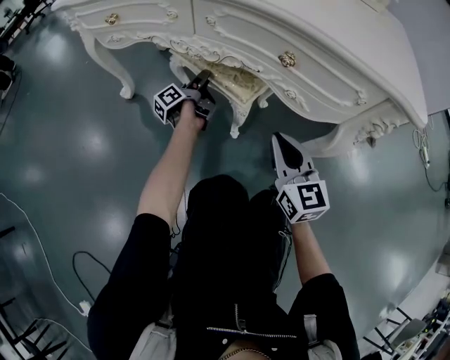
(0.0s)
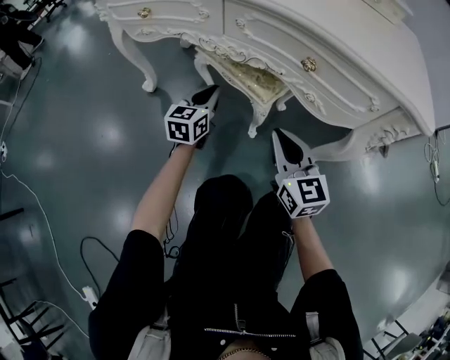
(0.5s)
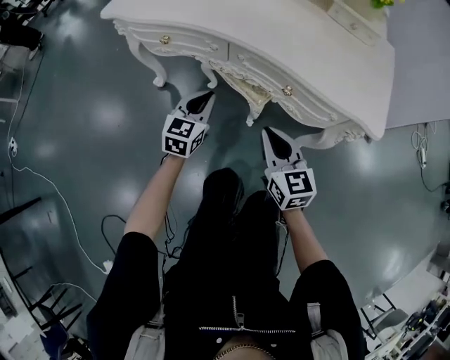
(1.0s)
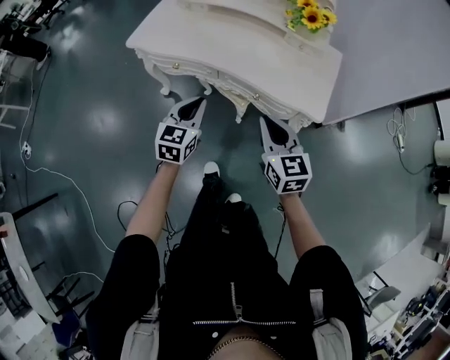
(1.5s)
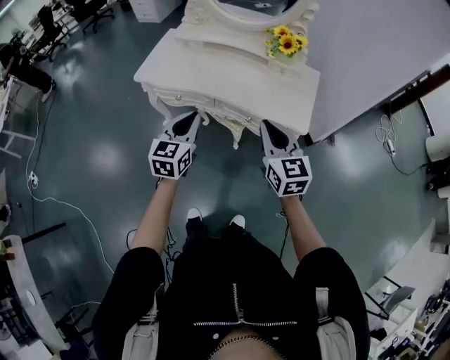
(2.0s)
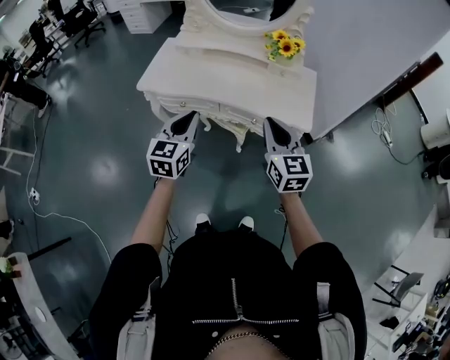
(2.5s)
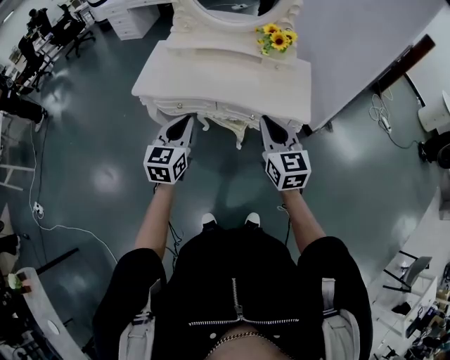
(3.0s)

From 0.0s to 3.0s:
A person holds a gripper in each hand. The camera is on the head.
From 0.0s to 1.5s: The left gripper goes about 60 cm upward and backward, rotates around the line of its fingers by some 80 degrees, clockwise from behind, and closes its fingers. The right gripper goes roughly 50 cm upward.
From 1.5s to 3.0s: The right gripper goes roughly 15 cm upward, while the left gripper goes some 15 cm upward and to the left.

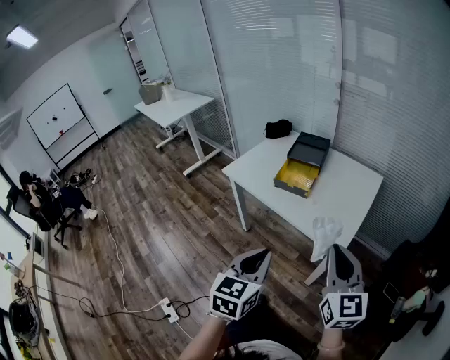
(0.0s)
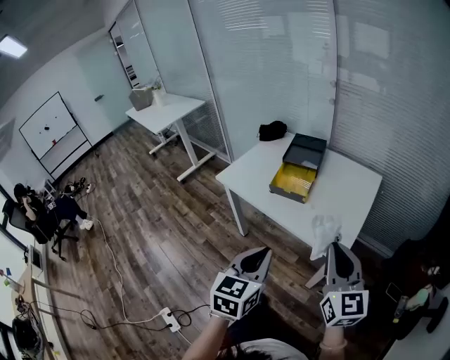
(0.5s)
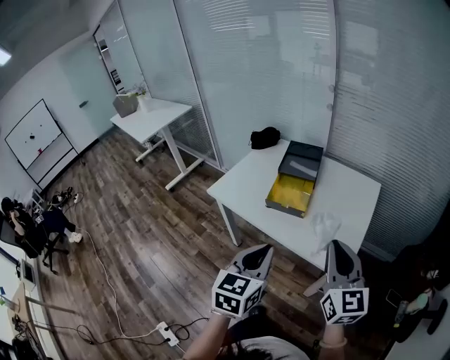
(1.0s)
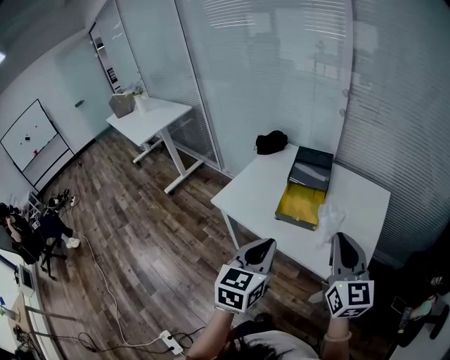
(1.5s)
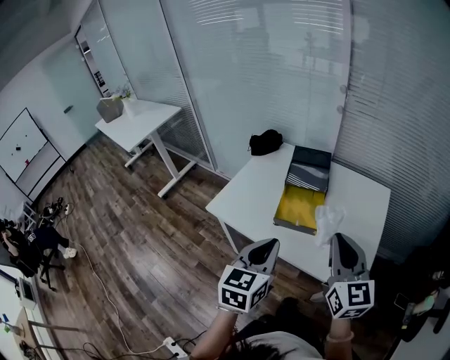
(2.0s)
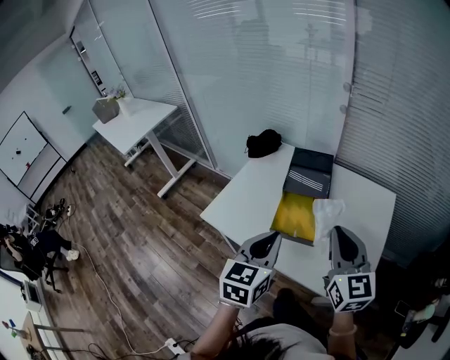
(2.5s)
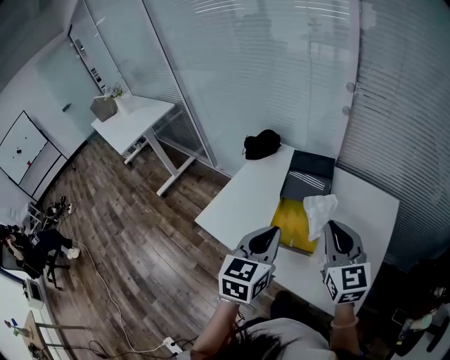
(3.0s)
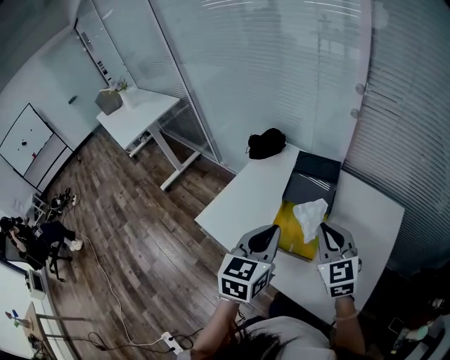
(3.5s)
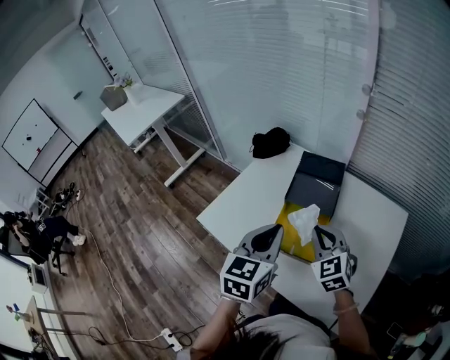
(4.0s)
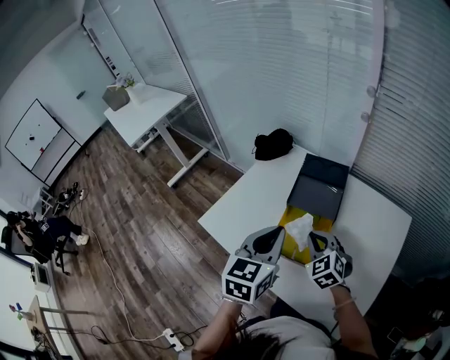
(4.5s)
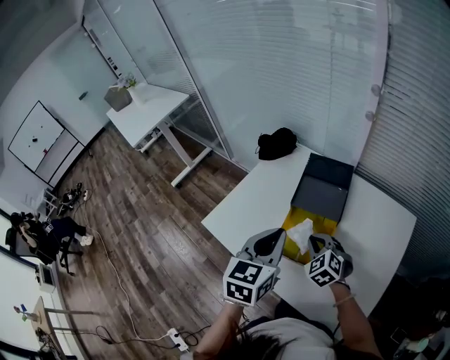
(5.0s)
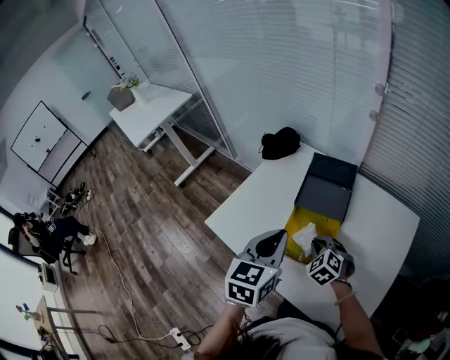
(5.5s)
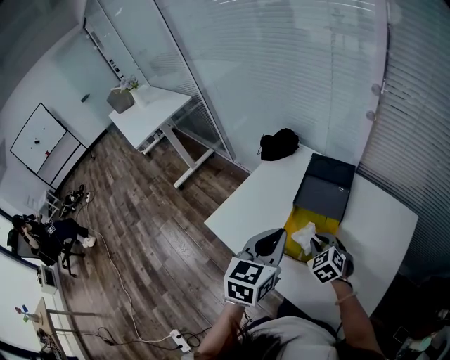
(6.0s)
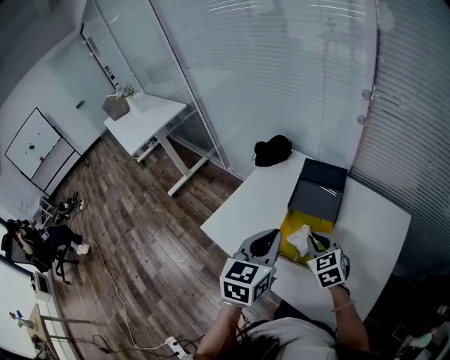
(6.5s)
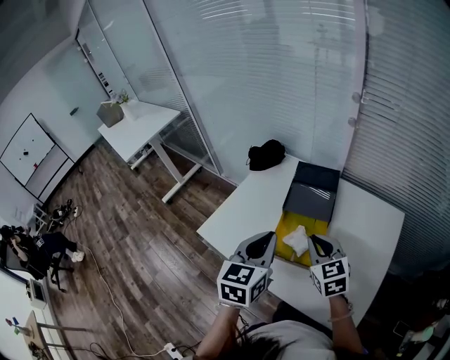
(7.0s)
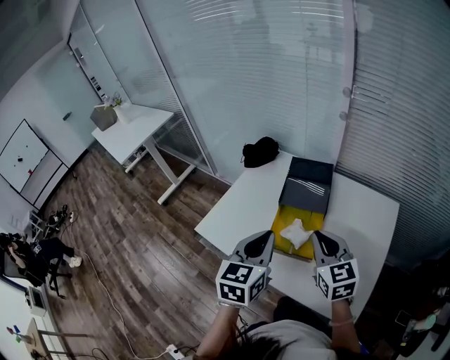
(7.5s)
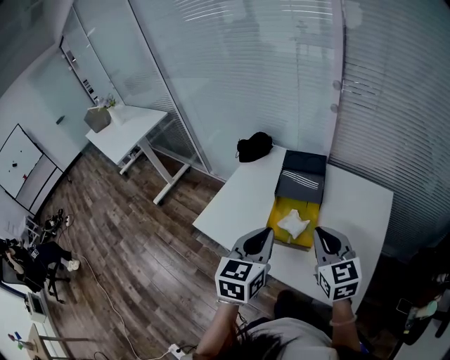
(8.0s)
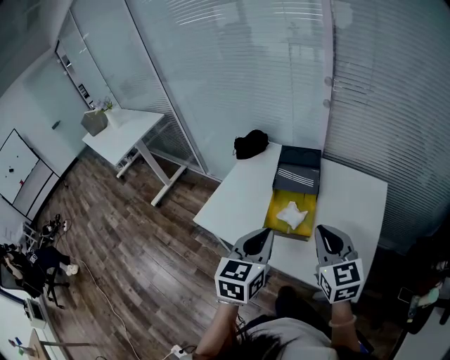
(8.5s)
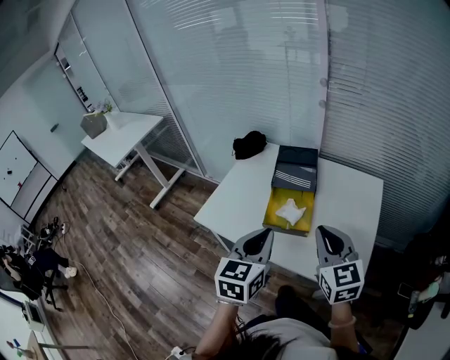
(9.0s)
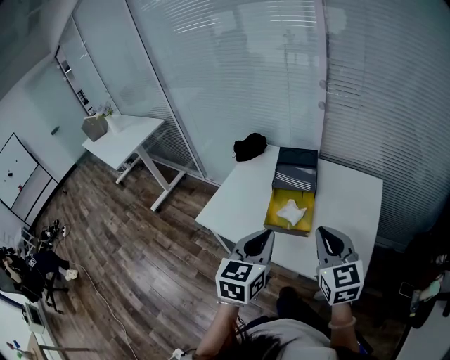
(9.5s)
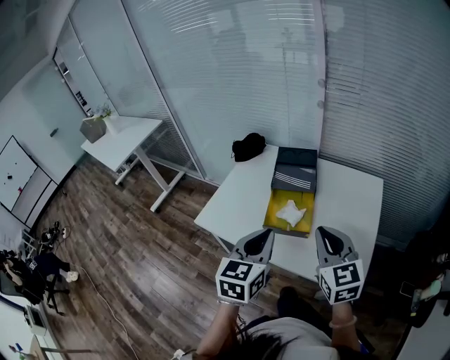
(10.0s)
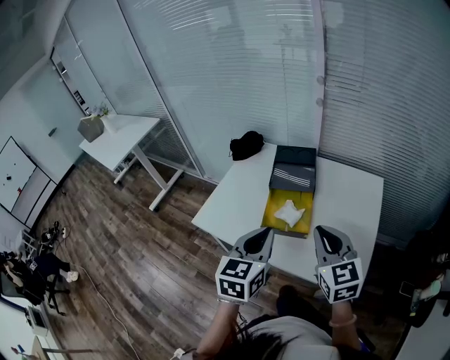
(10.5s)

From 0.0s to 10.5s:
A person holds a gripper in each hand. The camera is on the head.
From 0.0s to 2.0s: The left gripper goes approximately 25 cm forward; the right gripper is displaced forward and to the left by approximately 25 cm.
From 2.0s to 4.0s: The left gripper moves forward, some 20 cm. Meanwhile the right gripper moves forward and downward, roughly 25 cm, and changes its angle by approximately 40 degrees.
From 4.0s to 6.5s: The right gripper shifts roughly 5 cm downward.
From 6.5s to 8.5s: The left gripper shifts approximately 10 cm backward. The right gripper heads upward and backward, covering about 20 cm, and rotates roughly 30 degrees.
From 8.5s to 10.5s: The grippers make only small movements.

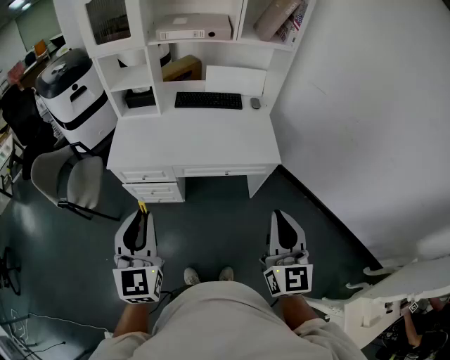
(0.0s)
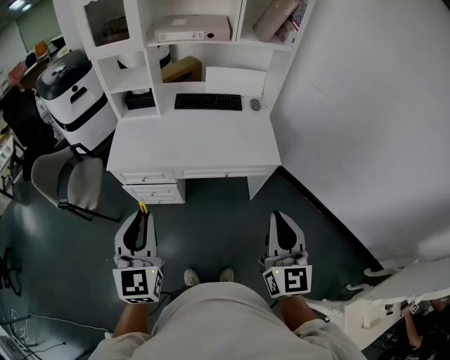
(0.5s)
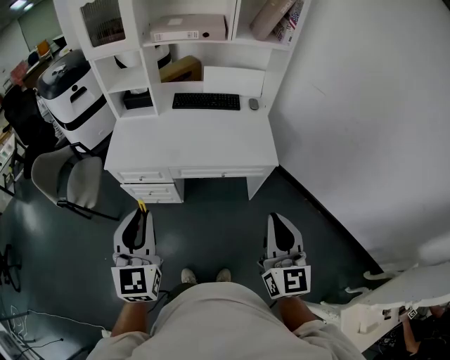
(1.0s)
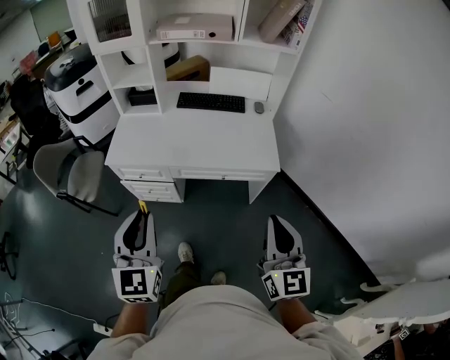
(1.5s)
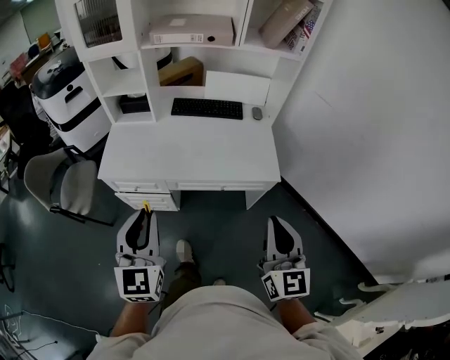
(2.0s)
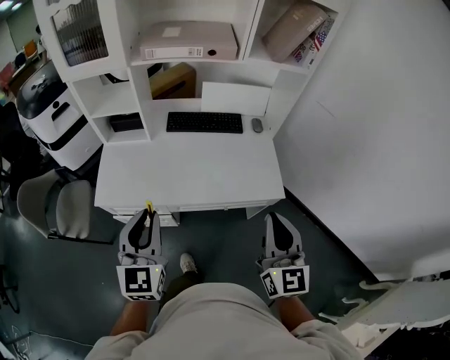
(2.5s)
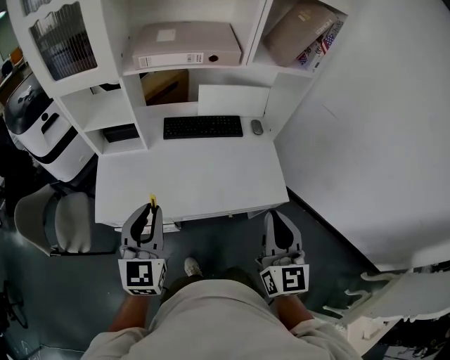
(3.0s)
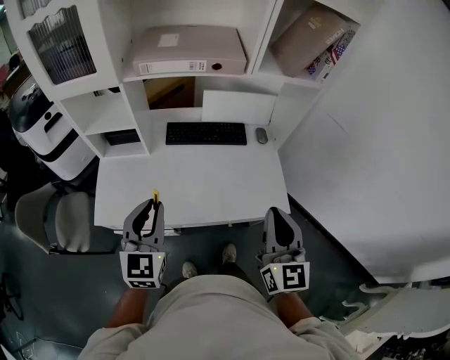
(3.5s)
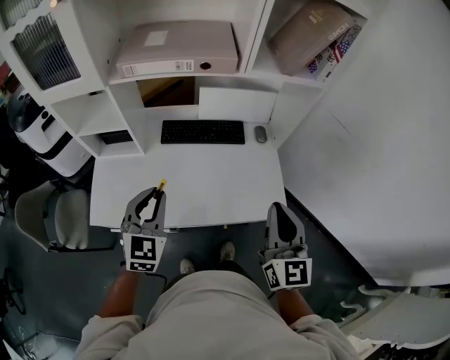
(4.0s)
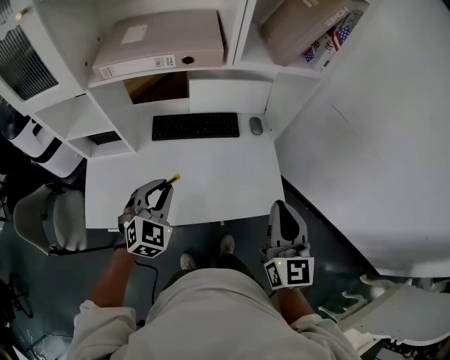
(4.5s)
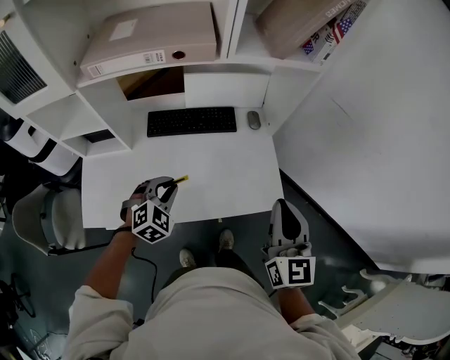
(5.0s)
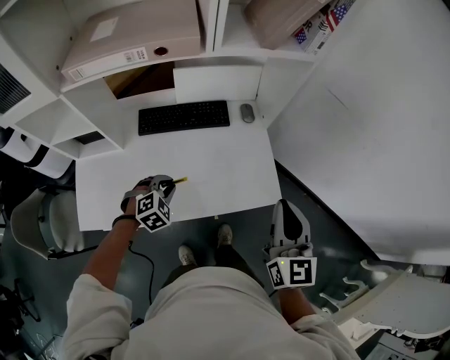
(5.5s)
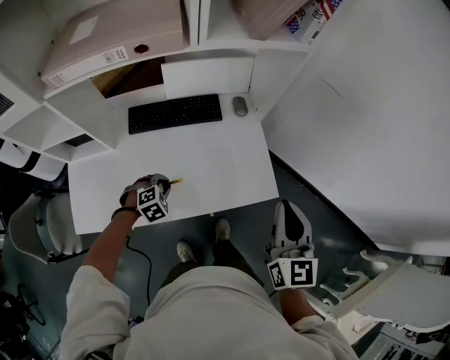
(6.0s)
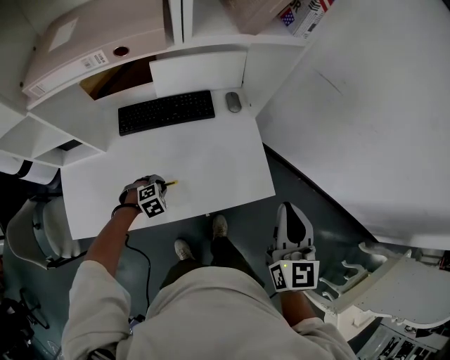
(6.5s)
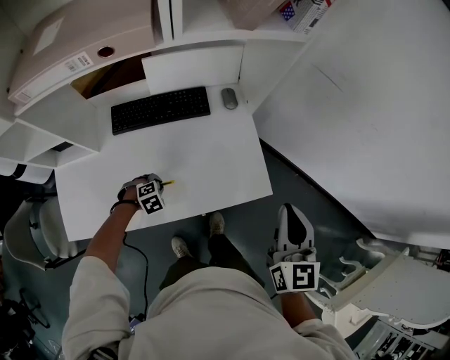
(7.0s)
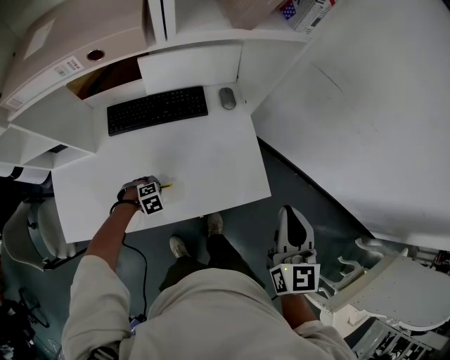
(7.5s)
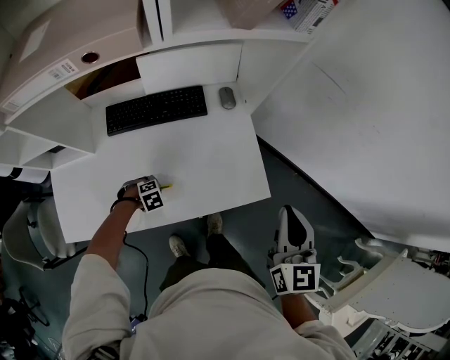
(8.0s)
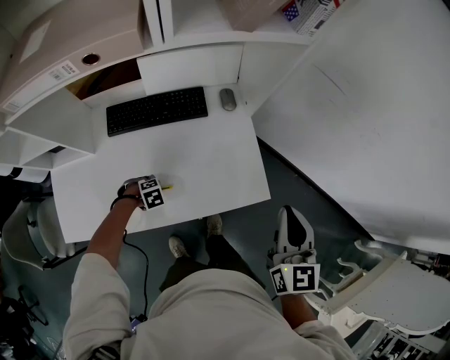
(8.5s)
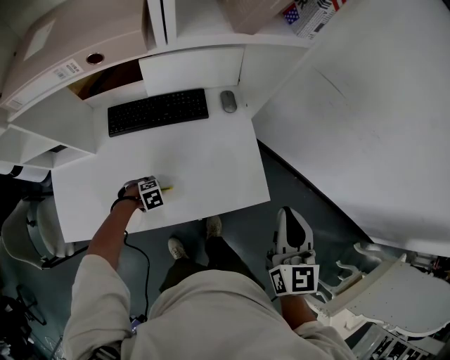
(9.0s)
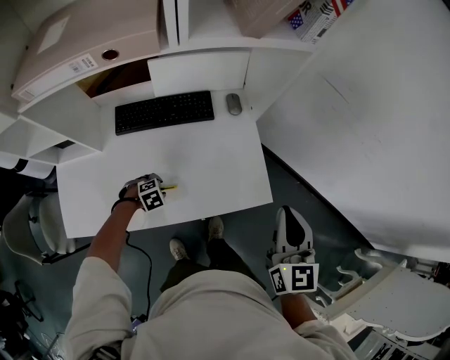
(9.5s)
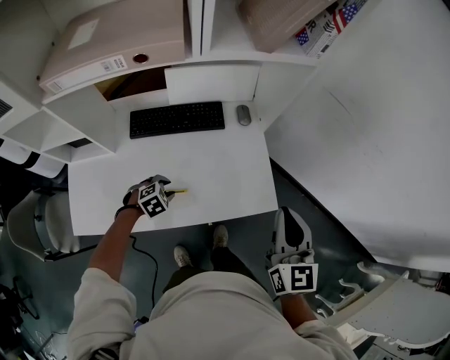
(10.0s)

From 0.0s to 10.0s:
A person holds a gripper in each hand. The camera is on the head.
From 0.0s to 2.0s: Both grippers travel together forward, about 10 cm.
From 2.0s to 4.0s: Both grippers travel together forward, some 30 cm. The left gripper swivels some 20 degrees.
From 4.0s to 6.0s: The right gripper shifts some 10 cm to the right and downward. Meanwhile the left gripper travels downward by roughly 30 cm, and angles its fingers downward, by about 50 degrees.
From 6.0s to 8.0s: The right gripper ends up approximately 5 cm from where it was. Meanwhile the left gripper goes approximately 15 cm downward, and turns by some 20 degrees.
From 8.0s to 10.0s: The right gripper shifts by about 5 cm. The left gripper is displaced upward by approximately 10 cm, and opens.

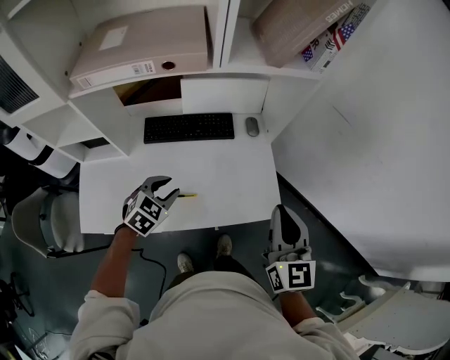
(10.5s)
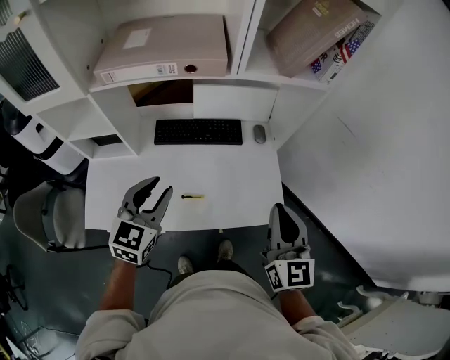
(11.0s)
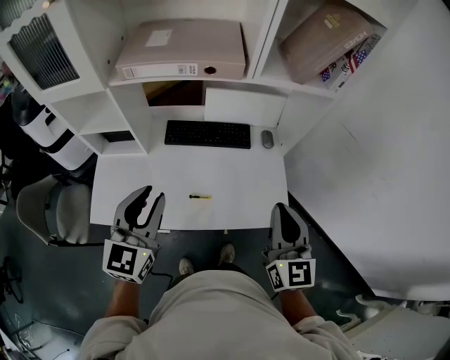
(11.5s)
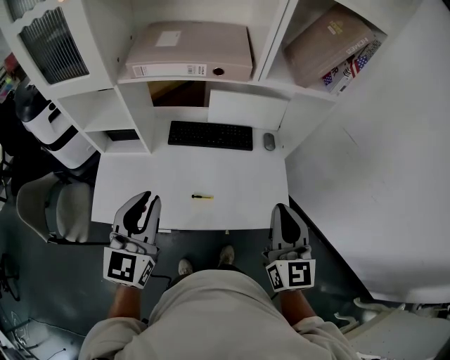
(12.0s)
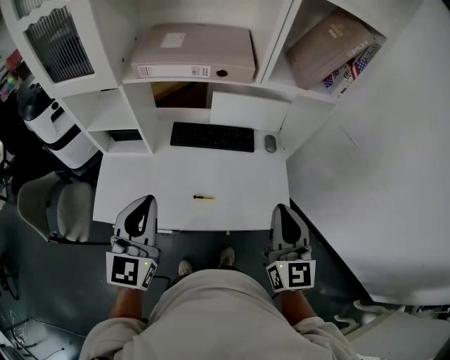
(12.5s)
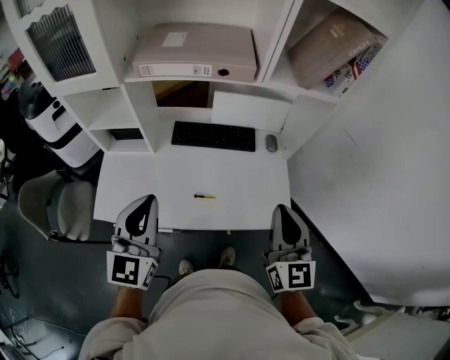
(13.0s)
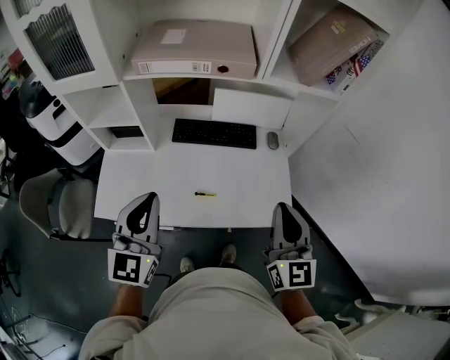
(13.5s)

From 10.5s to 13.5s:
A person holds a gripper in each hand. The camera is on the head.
From 10.5s to 12.0s: The left gripper heads upward, backward and to the left, covering some 30 cm, and tilts its fingers some 40 degrees upward; the right gripper moves to the left, roughly 5 cm.
From 12.0s to 13.5s: The grippers move only a little.
